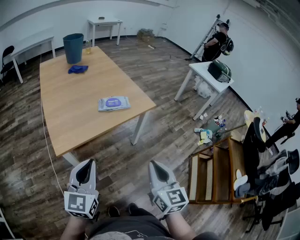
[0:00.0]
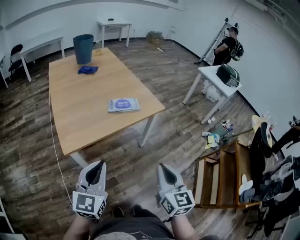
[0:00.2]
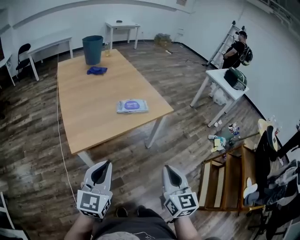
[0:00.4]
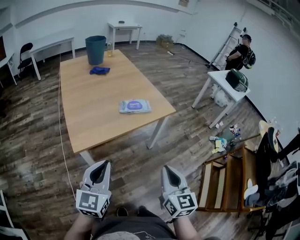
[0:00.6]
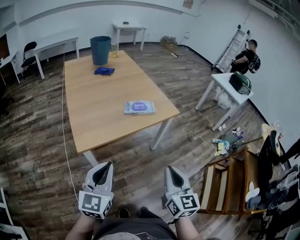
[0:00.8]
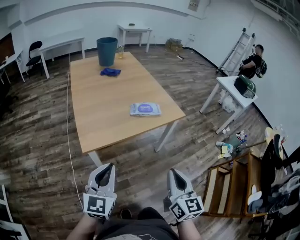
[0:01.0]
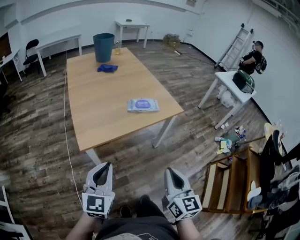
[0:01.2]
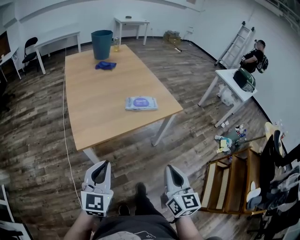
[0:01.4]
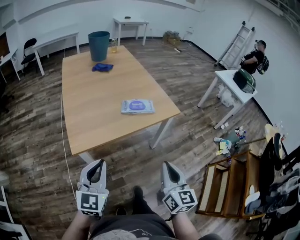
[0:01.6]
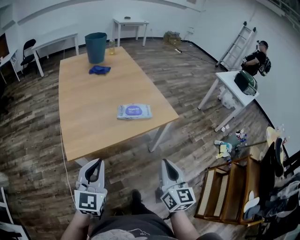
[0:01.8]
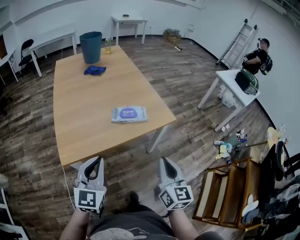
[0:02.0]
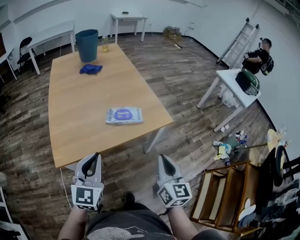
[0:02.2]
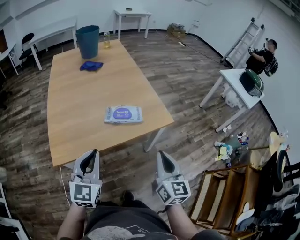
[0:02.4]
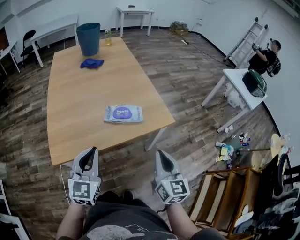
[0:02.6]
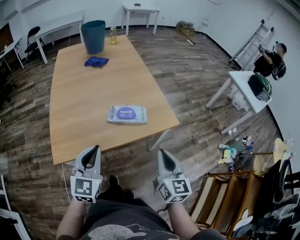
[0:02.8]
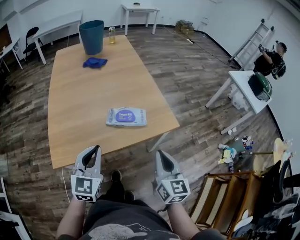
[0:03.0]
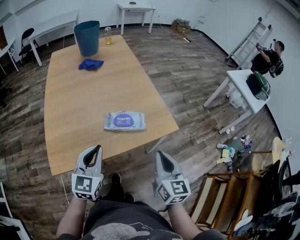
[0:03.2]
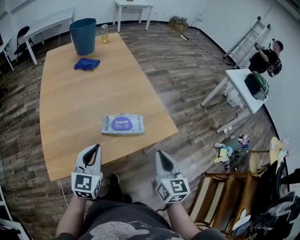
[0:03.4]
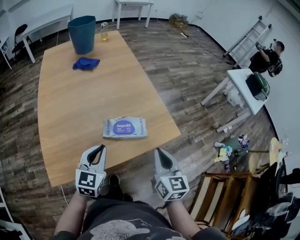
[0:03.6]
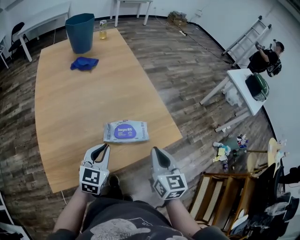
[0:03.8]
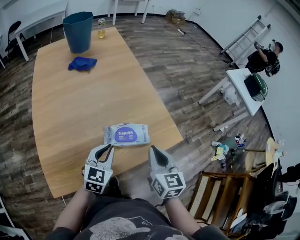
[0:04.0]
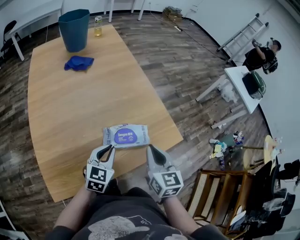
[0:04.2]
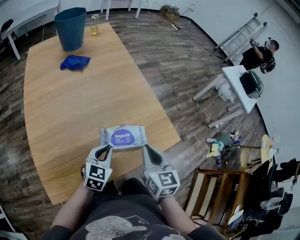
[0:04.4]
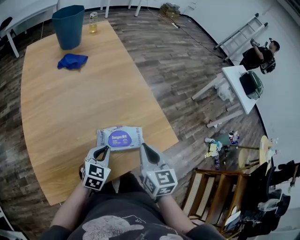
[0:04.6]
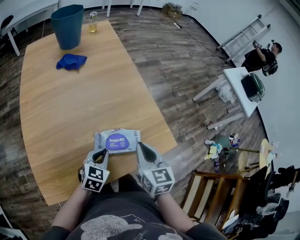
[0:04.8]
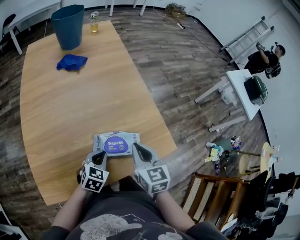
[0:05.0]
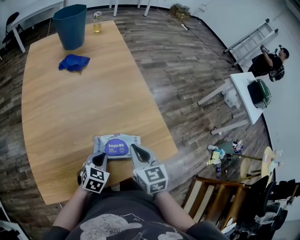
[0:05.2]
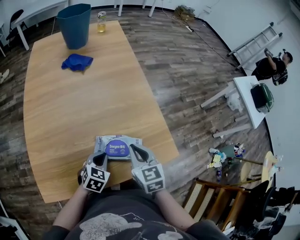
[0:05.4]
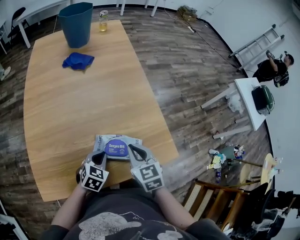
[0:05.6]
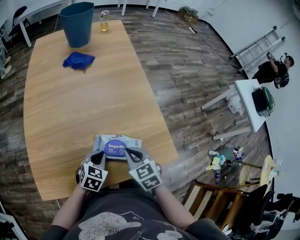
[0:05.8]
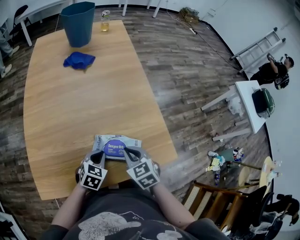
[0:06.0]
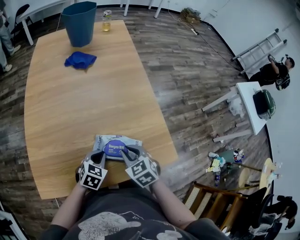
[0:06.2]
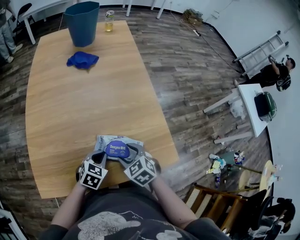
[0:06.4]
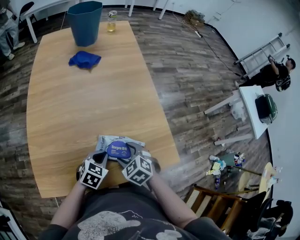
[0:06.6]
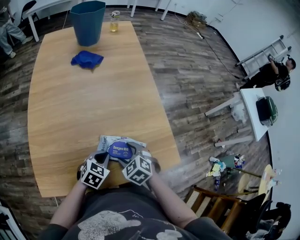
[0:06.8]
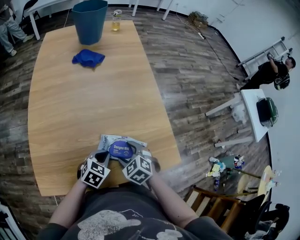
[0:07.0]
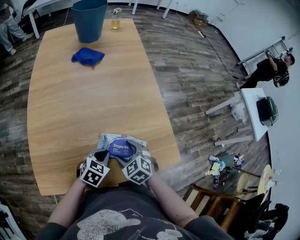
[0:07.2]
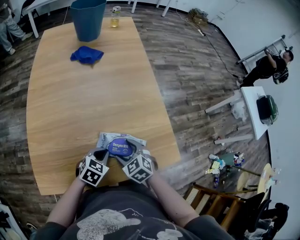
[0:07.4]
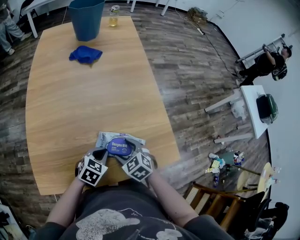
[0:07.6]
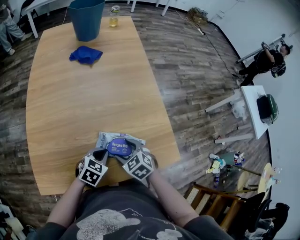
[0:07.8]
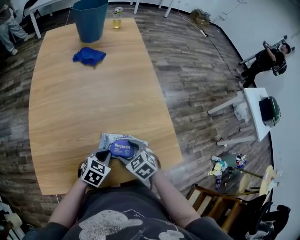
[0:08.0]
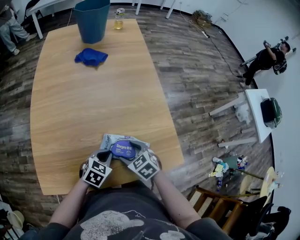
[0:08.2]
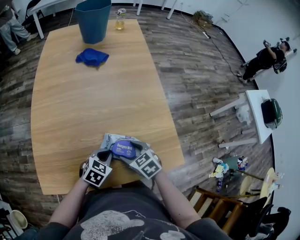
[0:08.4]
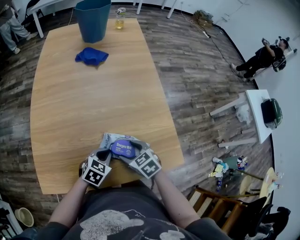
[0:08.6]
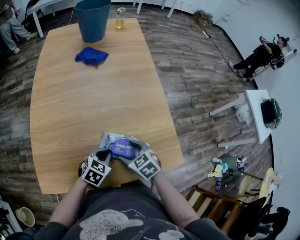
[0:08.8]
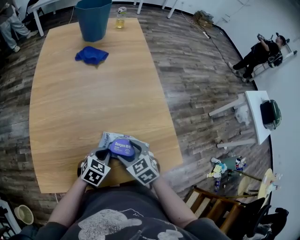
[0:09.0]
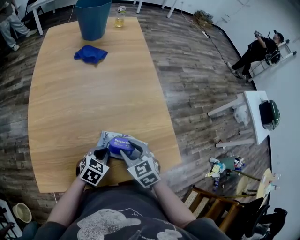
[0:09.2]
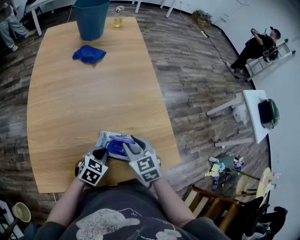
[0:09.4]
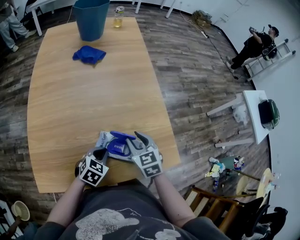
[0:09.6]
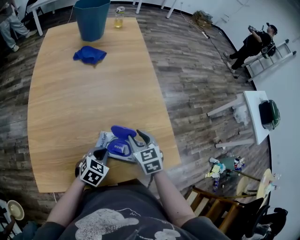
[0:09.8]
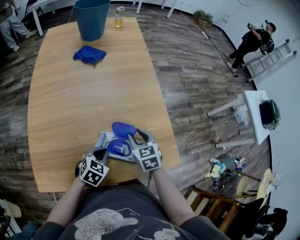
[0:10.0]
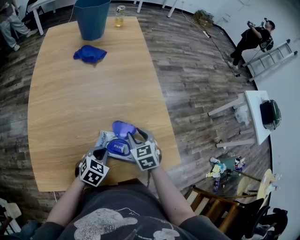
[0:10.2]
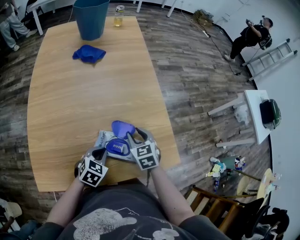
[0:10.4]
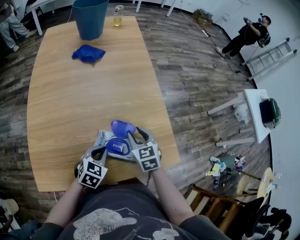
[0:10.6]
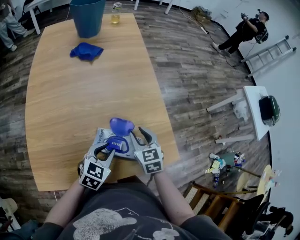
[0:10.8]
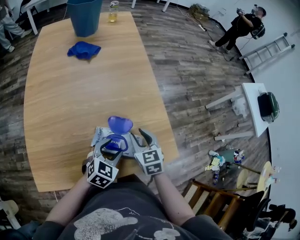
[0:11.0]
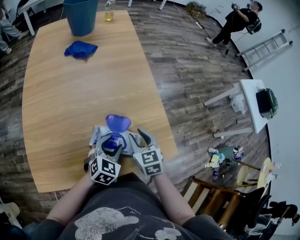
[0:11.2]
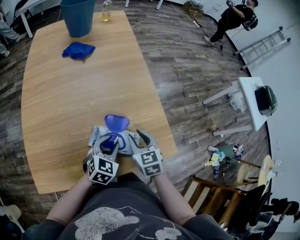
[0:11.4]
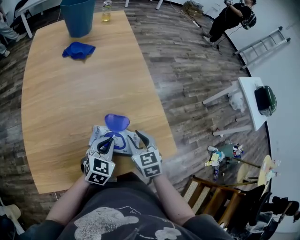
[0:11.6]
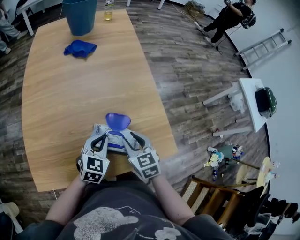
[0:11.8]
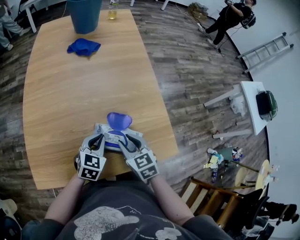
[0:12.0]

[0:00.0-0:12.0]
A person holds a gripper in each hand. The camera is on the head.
0:00.0 to 0:01.6: The grippers stay close to where they were, moving slightly.
0:01.6 to 0:03.0: The right gripper goes approximately 20 cm forward, while the left gripper heads forward and to the right, covering about 20 cm.
0:03.0 to 0:04.4: The right gripper shifts about 15 cm forward and to the left. Meanwhile the left gripper shifts roughly 20 cm forward and downward, and swivels roughly 30 degrees.
0:04.4 to 0:06.0: The right gripper is displaced downward and forward by roughly 10 cm, and rotates roughly 40 degrees, while the left gripper heads downward, covering roughly 5 cm.
0:06.0 to 0:07.6: The right gripper heads downward, covering approximately 5 cm, and opens up.
0:07.6 to 0:09.0: There are only small adjustments of the grippers.
0:09.0 to 0:10.4: The right gripper is displaced forward by approximately 10 cm, and closes its fingers.
0:10.4 to 0:12.0: The left gripper opens and closes again; the right gripper heads backward, covering roughly 5 cm.

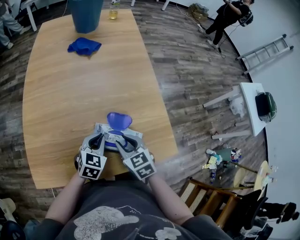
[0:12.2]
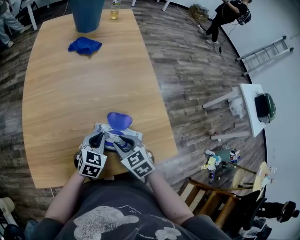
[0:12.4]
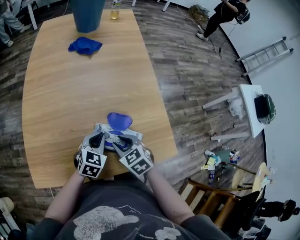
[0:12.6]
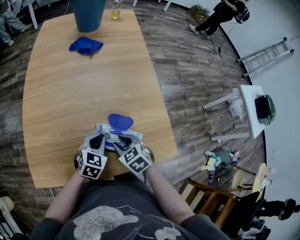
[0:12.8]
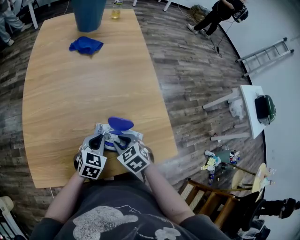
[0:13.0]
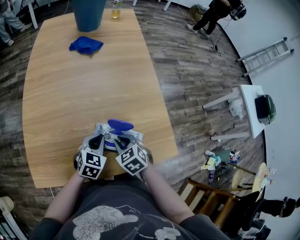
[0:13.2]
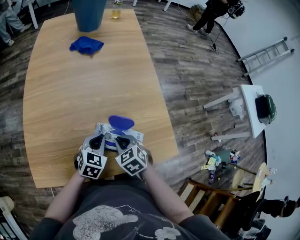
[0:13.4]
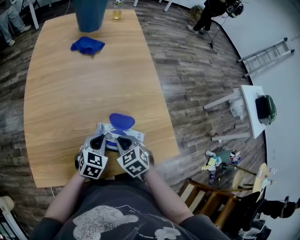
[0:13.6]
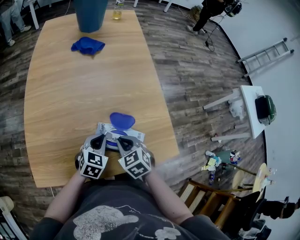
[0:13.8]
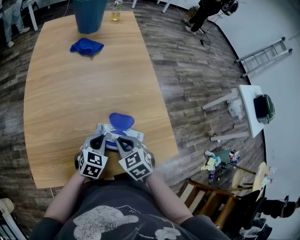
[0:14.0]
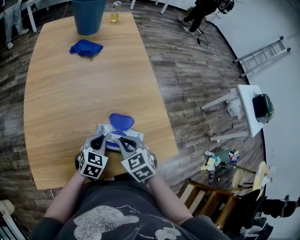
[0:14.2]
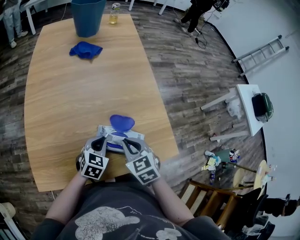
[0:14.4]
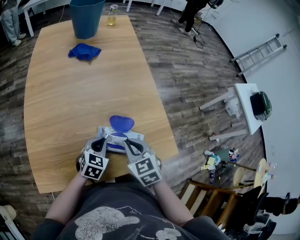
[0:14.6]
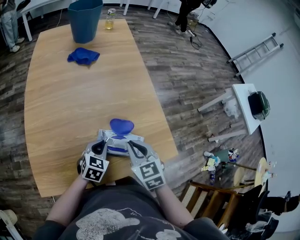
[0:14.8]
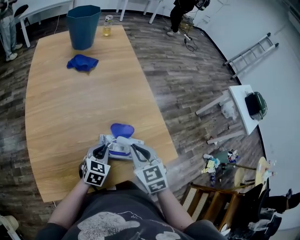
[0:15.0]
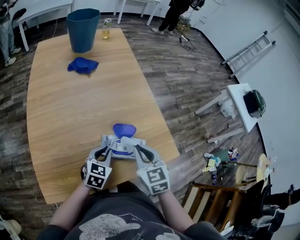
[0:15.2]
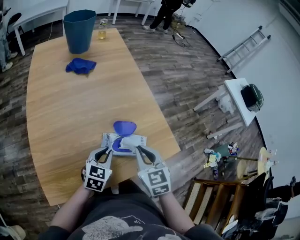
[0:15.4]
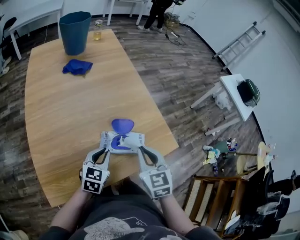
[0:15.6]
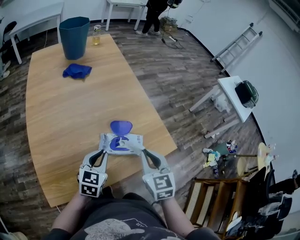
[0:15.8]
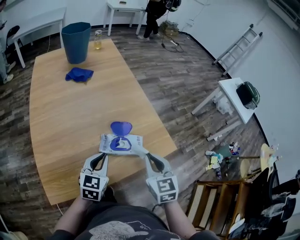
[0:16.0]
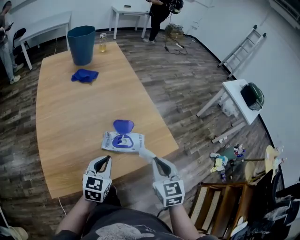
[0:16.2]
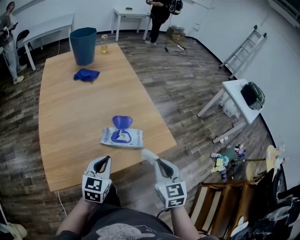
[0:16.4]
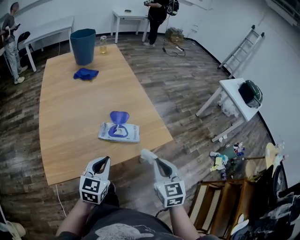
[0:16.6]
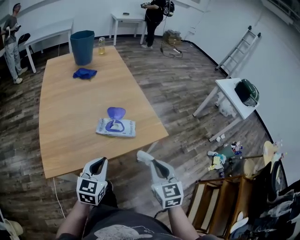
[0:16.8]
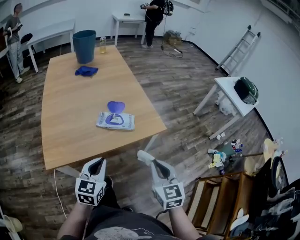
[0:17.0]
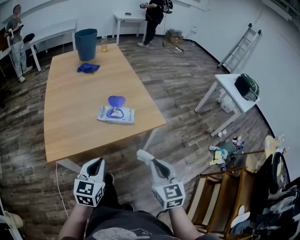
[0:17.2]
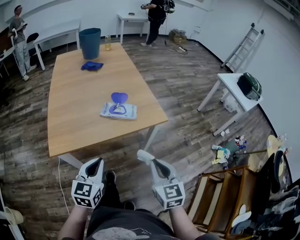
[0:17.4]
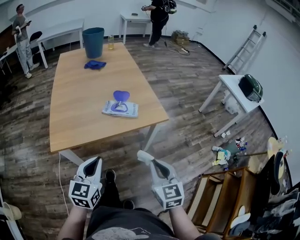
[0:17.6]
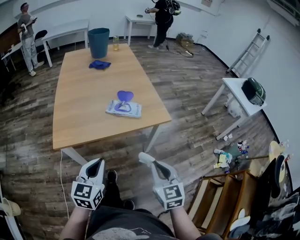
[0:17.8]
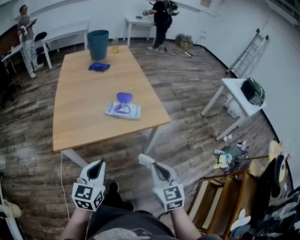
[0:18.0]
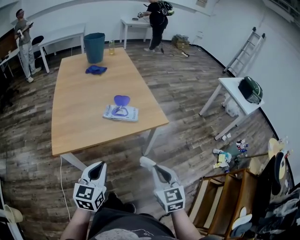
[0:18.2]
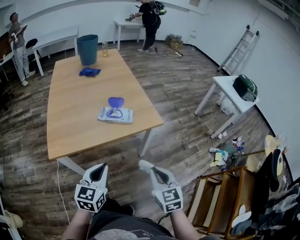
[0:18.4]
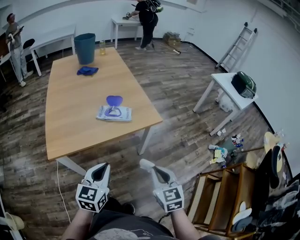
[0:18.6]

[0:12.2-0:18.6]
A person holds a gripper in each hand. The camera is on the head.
0:12.2 to 0:13.8: The grippers make only small movements.
0:13.8 to 0:15.4: The right gripper moves upward, some 10 cm, and turns by approximately 30 degrees.
0:15.4 to 0:17.0: The left gripper goes about 25 cm backward and upward, while the right gripper shifts roughly 25 cm backward and to the right.
0:17.0 to 0:18.6: Both grippers travel together backward, about 10 cm.

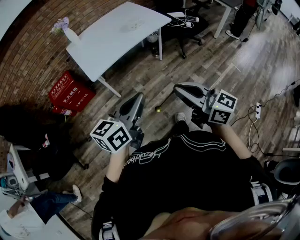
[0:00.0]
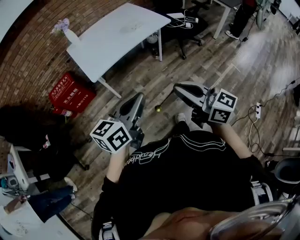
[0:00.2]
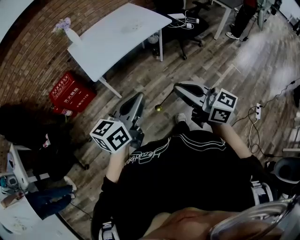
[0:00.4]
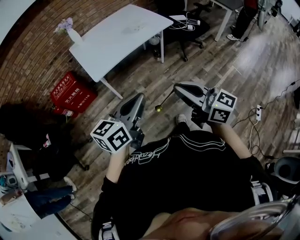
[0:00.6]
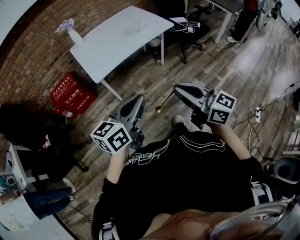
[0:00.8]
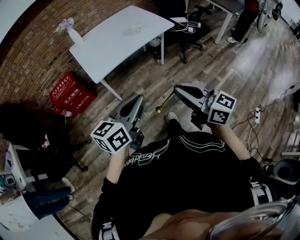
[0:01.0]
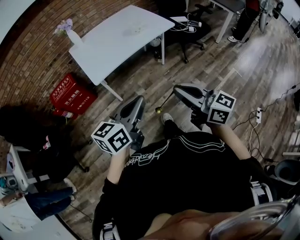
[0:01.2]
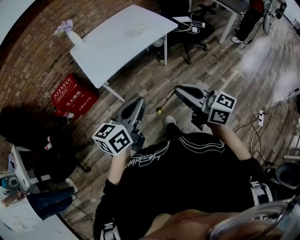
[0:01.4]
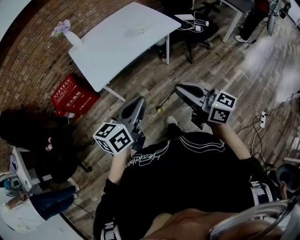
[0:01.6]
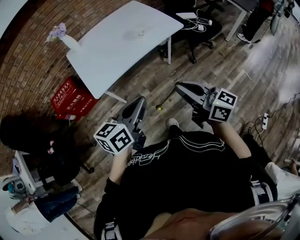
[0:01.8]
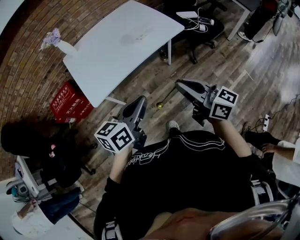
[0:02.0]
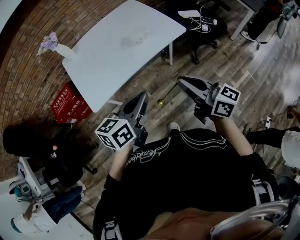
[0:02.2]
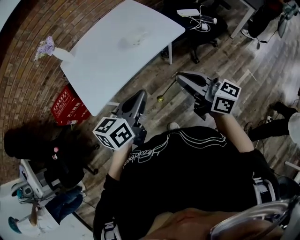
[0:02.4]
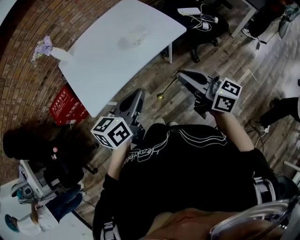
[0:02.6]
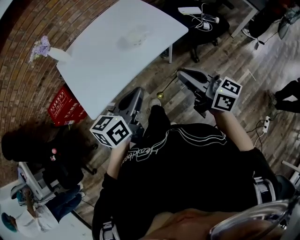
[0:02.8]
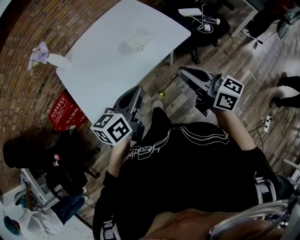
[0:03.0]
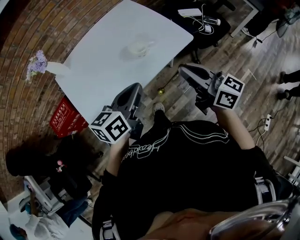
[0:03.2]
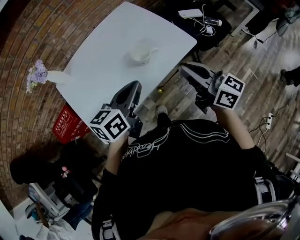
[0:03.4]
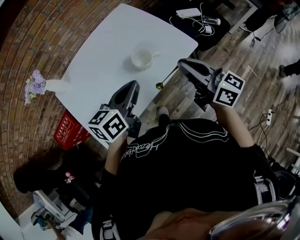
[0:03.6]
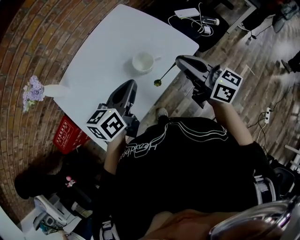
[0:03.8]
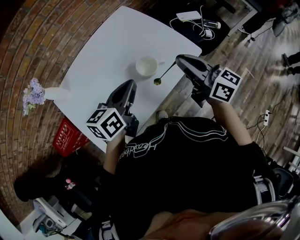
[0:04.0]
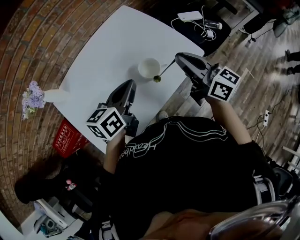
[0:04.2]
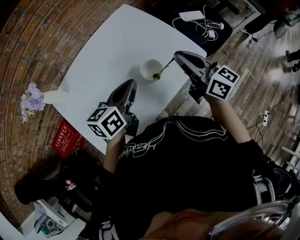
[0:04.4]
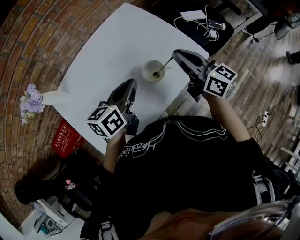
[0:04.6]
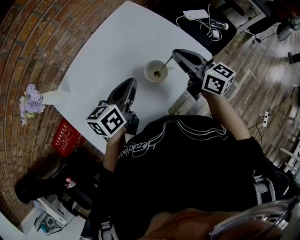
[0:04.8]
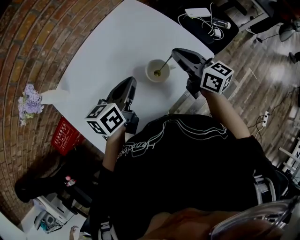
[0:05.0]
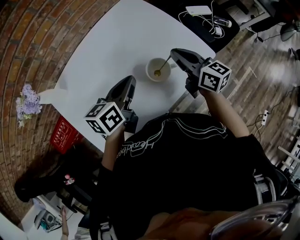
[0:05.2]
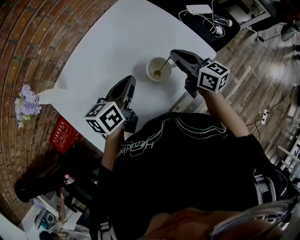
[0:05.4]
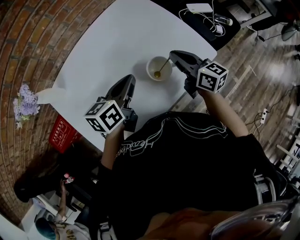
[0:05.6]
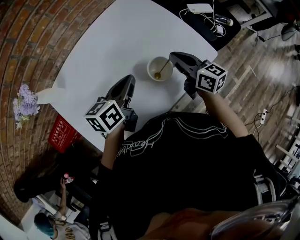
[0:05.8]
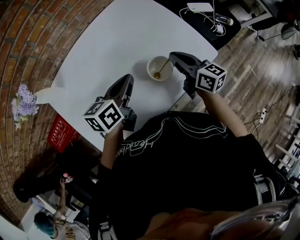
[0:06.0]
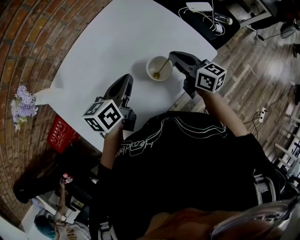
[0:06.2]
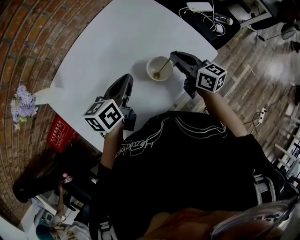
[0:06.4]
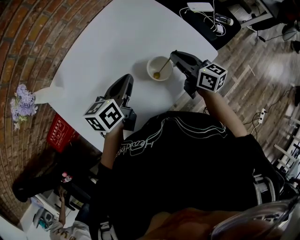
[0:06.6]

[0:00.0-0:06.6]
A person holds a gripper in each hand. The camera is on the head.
0:00.0 to 0:01.6: The two grippers go approximately 10 cm forward.
0:01.6 to 0:03.2: Both grippers move forward, about 40 cm.
0:03.2 to 0:05.0: The left gripper moves forward and to the left, about 25 cm, while the right gripper is displaced forward by roughly 25 cm.
0:05.0 to 0:06.6: The right gripper heads downward, covering approximately 10 cm. The left gripper moves about 5 cm.
